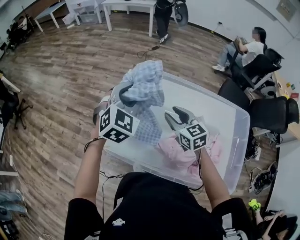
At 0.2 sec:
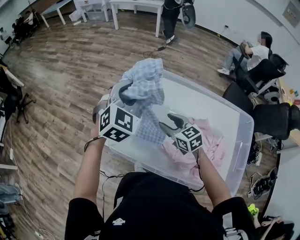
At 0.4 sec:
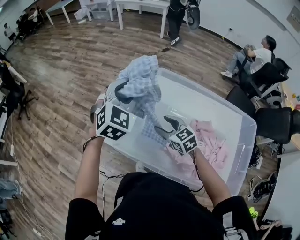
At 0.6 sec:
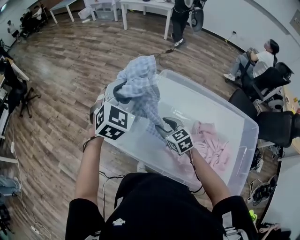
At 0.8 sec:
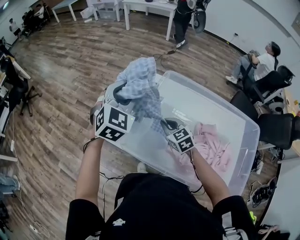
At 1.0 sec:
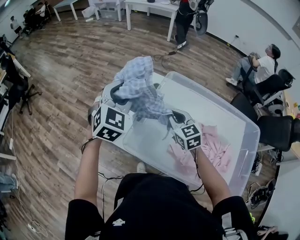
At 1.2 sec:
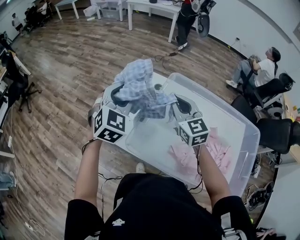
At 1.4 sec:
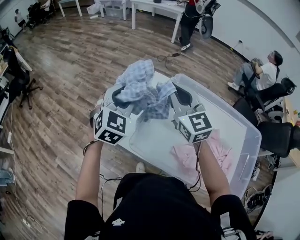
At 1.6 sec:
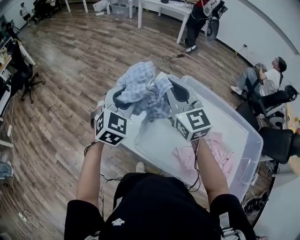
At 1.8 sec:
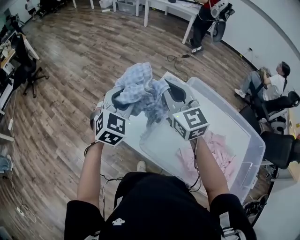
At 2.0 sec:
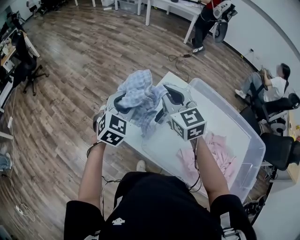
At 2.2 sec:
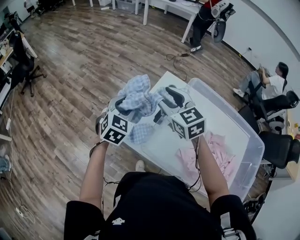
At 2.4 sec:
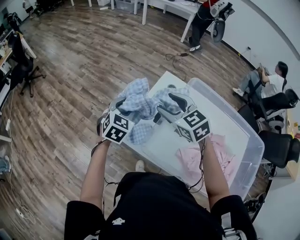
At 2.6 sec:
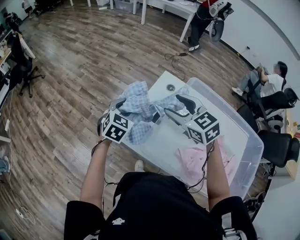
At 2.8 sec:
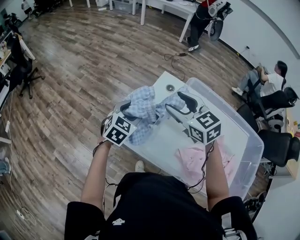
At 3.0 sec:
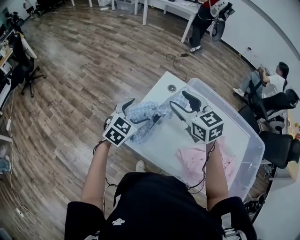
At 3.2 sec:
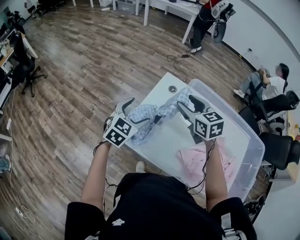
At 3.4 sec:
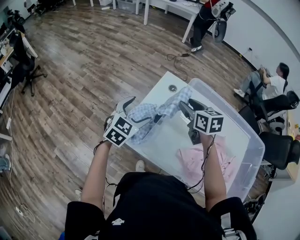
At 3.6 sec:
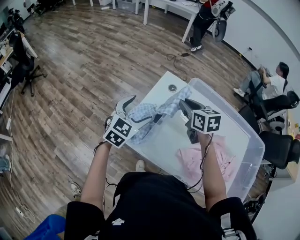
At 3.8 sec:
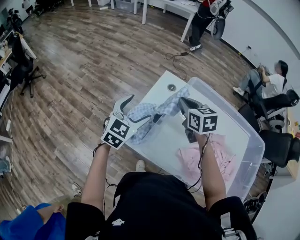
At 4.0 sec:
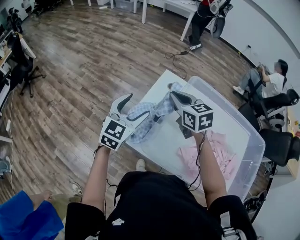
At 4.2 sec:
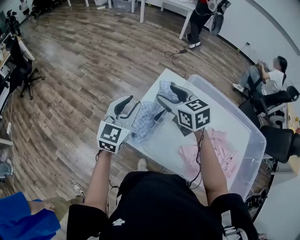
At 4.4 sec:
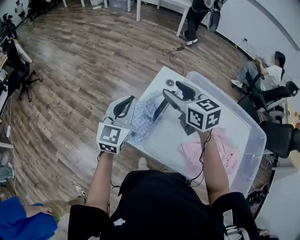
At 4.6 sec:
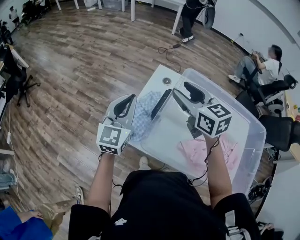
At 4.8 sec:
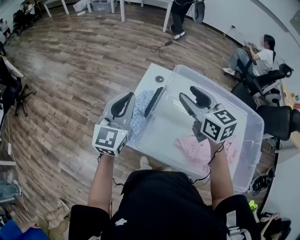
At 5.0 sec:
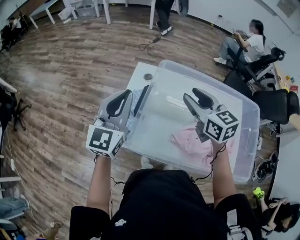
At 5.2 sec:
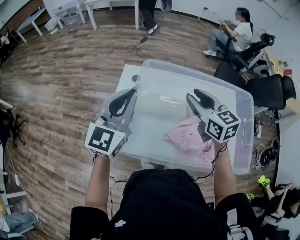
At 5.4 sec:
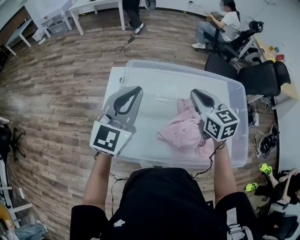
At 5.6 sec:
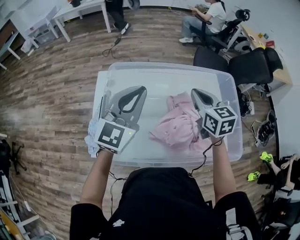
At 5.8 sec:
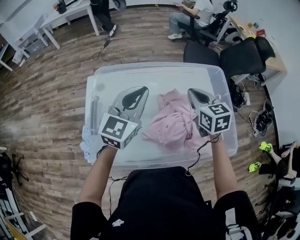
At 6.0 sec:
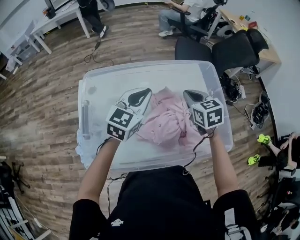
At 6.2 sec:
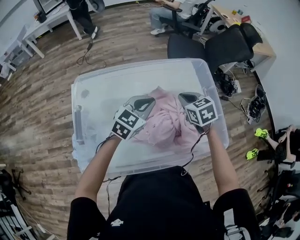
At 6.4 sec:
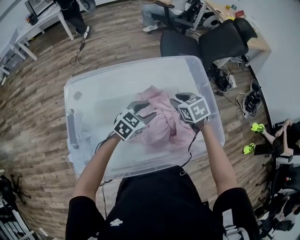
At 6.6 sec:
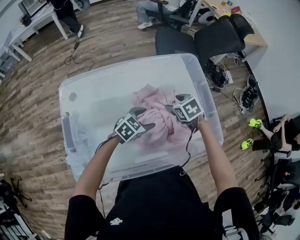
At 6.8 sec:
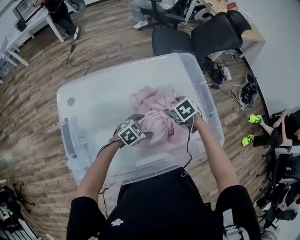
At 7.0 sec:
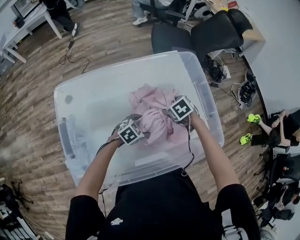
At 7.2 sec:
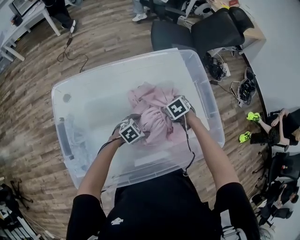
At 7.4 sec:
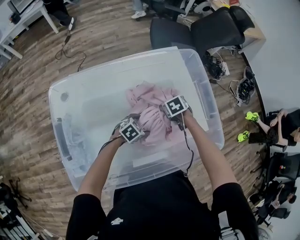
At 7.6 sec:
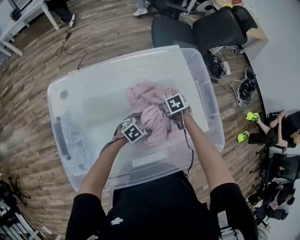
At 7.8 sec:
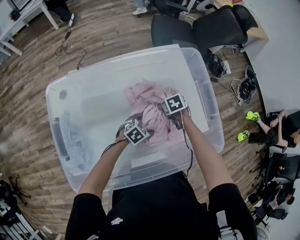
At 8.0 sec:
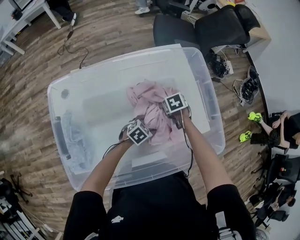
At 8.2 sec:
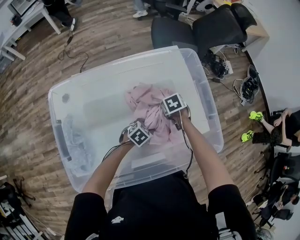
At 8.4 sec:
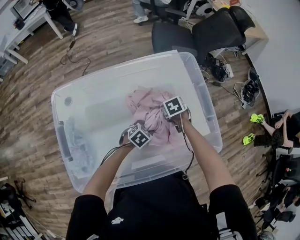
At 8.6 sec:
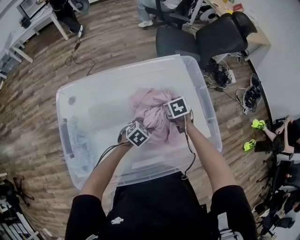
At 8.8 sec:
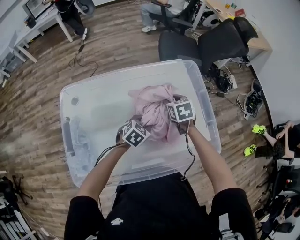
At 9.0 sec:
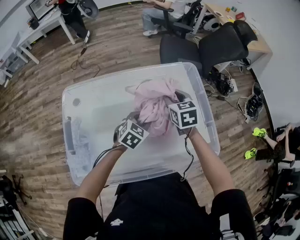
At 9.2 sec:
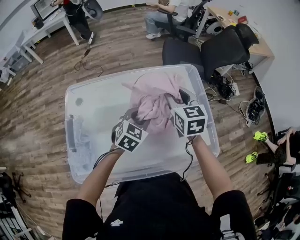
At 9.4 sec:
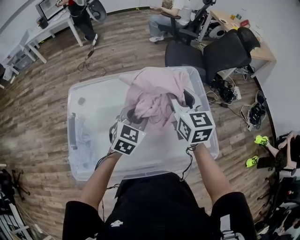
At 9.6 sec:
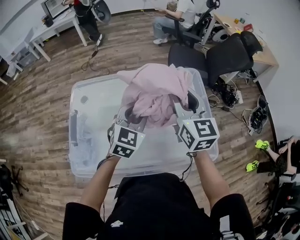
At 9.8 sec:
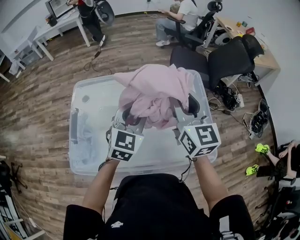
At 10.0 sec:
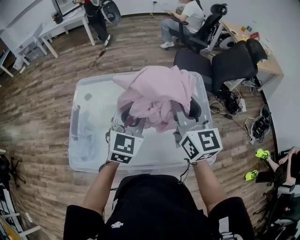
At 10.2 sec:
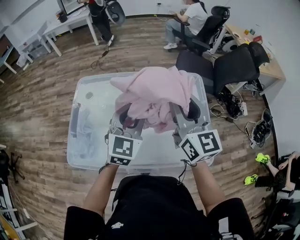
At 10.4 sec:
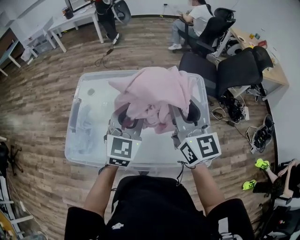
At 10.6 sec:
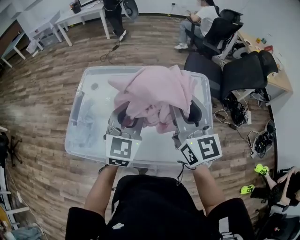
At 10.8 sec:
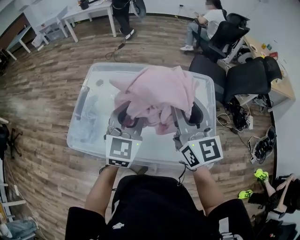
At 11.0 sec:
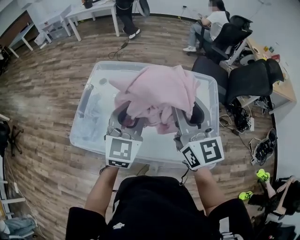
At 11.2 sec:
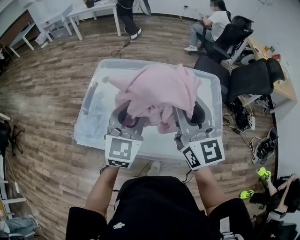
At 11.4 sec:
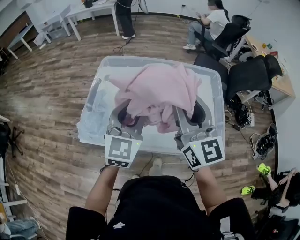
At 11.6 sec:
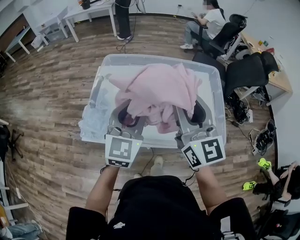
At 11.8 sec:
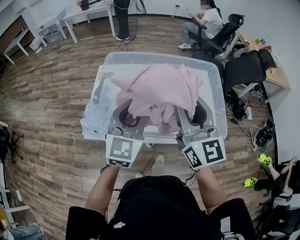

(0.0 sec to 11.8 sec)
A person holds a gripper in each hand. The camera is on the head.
0.0 sec - 1.4 sec: The left gripper moves to the left, roughly 15 cm; the right gripper shifts about 25 cm upward, to the left and forward, turns by some 30 degrees, and closes.
1.4 sec - 3.0 sec: The right gripper goes about 5 cm downward, rotates approximately 20 degrees, and opens. The left gripper moves downward, roughly 15 cm, rotates some 20 degrees, and opens.
3.0 sec - 4.4 sec: The left gripper travels upward by roughly 10 cm, turns by about 30 degrees, and closes its fingers, while the right gripper moves approximately 5 cm to the right and comes back, and closes, then opens again.
4.4 sec - 6.0 sec: Both grippers are carried about 40 cm. The right gripper swivels about 50 degrees, and closes its fingers. The left gripper turns by some 50 degrees.
6.0 sec - 7.4 sec: The grippers both shift downward by about 30 cm. The right gripper angles its fingers downward, by some 40 degrees, and opens, while the left gripper angles its fingers downward, by about 40 degrees, and opens up.
7.4 sec - 8.8 sec: Both grippers travel together upward, some 10 cm. The right gripper turns by approximately 20 degrees, and closes up, while the left gripper closes its fingers.
8.8 sec - 10.4 sec: The two grippers go approximately 30 cm upward. The left gripper tips its fingers upward by some 40 degrees. Meanwhile the right gripper tilts its fingers some 60 degrees upward.
10.4 sec - 11.8 sec: Both grippers move backward and to the left, some 15 cm.

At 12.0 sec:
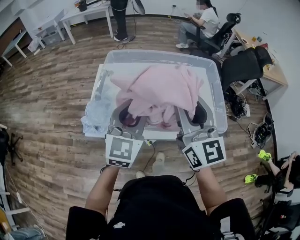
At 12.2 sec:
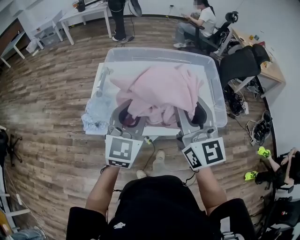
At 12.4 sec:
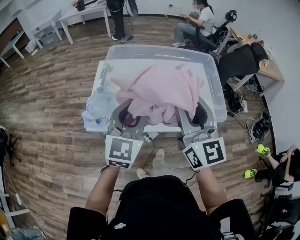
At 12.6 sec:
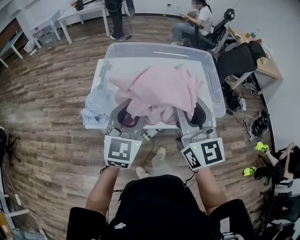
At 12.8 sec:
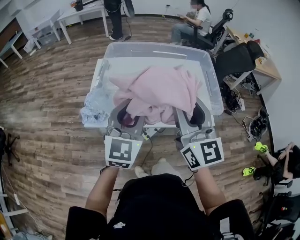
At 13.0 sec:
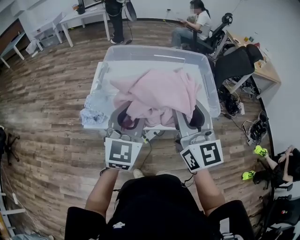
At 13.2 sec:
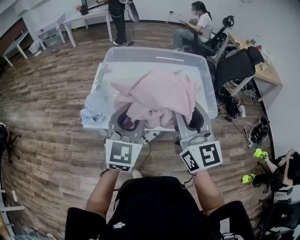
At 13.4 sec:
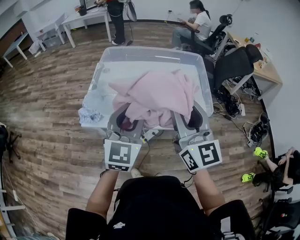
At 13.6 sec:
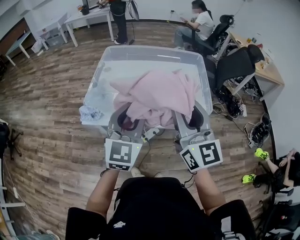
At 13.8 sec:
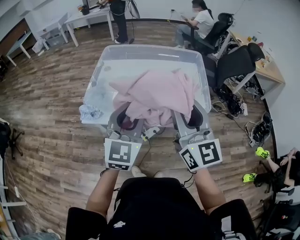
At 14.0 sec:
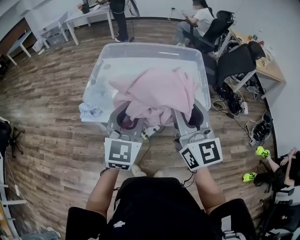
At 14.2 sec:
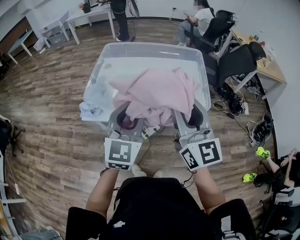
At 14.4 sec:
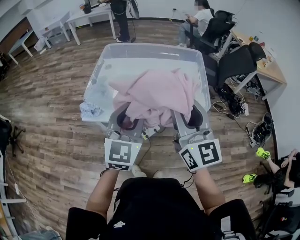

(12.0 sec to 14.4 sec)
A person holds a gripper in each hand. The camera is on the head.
12.0 sec - 13.2 sec: Both grippers travel together backward, about 10 cm.
13.2 sec - 14.4 sec: The left gripper changes place by some 5 cm, while the right gripper goes some 5 cm to the right.

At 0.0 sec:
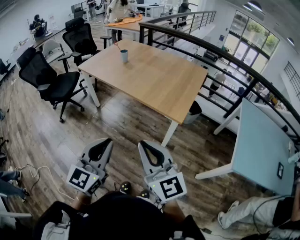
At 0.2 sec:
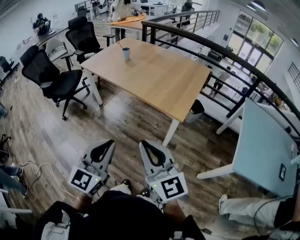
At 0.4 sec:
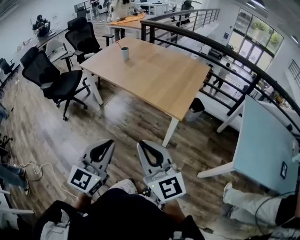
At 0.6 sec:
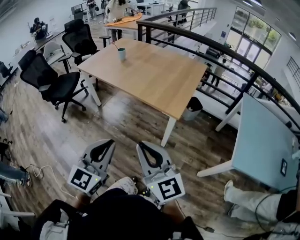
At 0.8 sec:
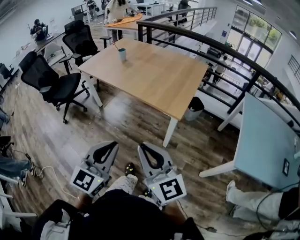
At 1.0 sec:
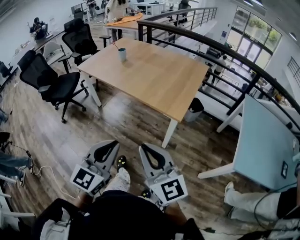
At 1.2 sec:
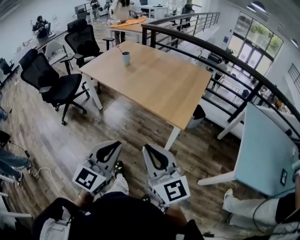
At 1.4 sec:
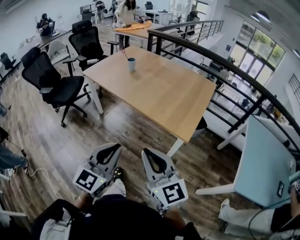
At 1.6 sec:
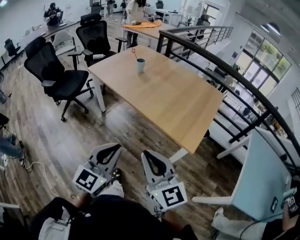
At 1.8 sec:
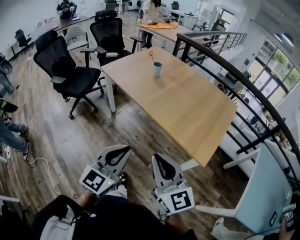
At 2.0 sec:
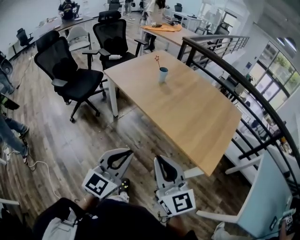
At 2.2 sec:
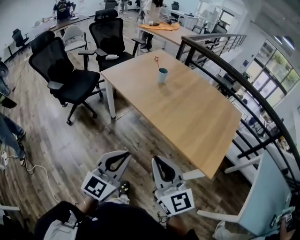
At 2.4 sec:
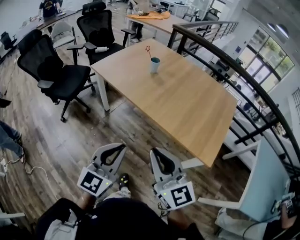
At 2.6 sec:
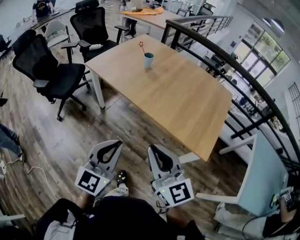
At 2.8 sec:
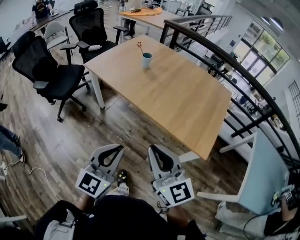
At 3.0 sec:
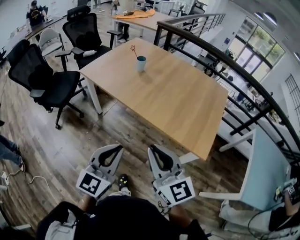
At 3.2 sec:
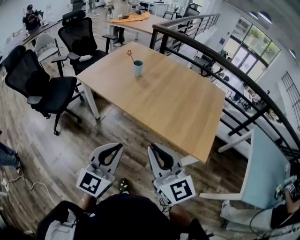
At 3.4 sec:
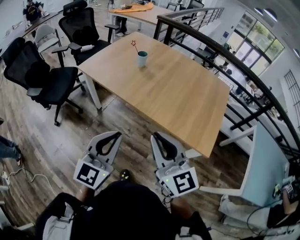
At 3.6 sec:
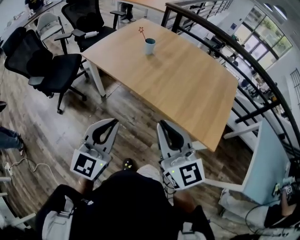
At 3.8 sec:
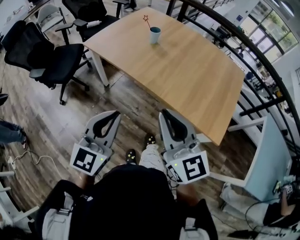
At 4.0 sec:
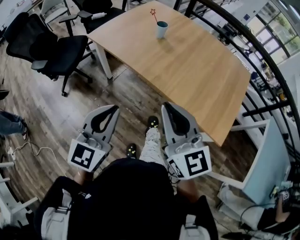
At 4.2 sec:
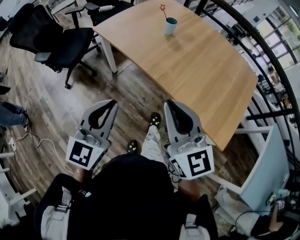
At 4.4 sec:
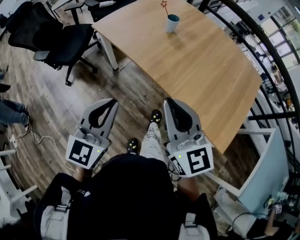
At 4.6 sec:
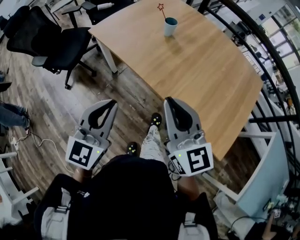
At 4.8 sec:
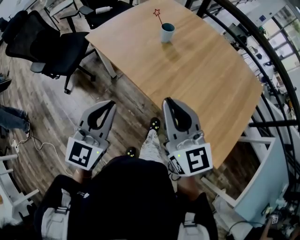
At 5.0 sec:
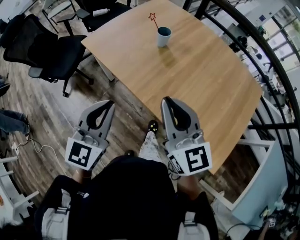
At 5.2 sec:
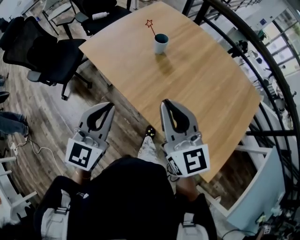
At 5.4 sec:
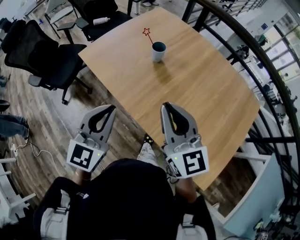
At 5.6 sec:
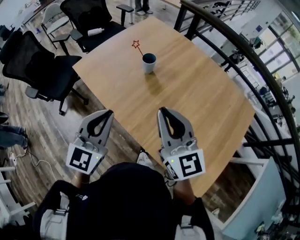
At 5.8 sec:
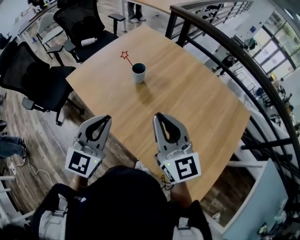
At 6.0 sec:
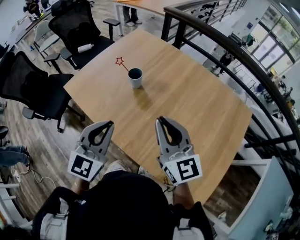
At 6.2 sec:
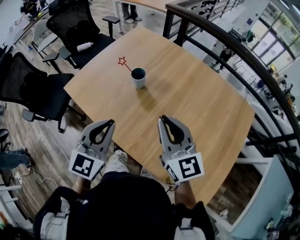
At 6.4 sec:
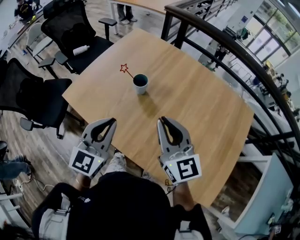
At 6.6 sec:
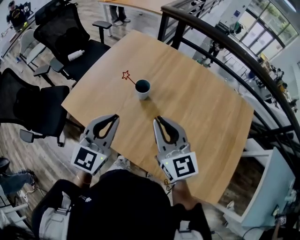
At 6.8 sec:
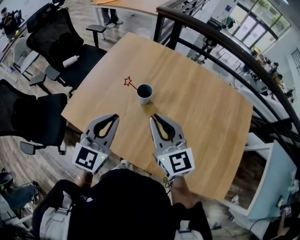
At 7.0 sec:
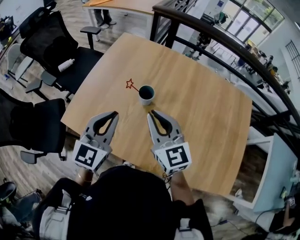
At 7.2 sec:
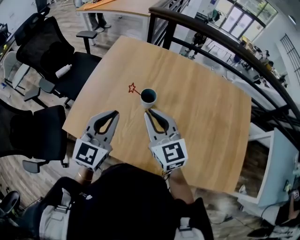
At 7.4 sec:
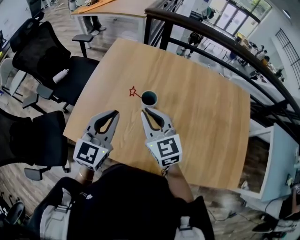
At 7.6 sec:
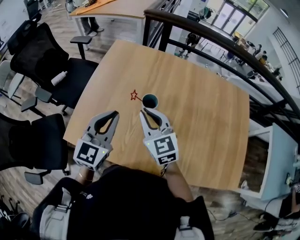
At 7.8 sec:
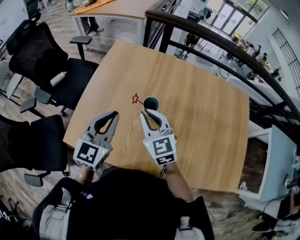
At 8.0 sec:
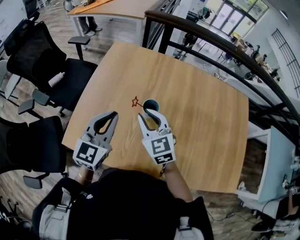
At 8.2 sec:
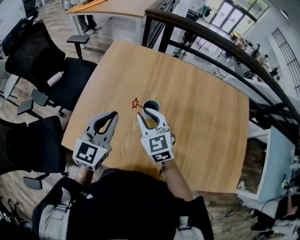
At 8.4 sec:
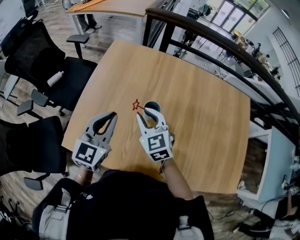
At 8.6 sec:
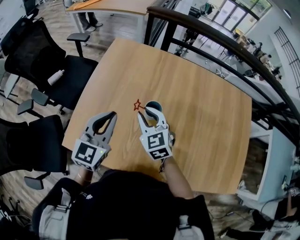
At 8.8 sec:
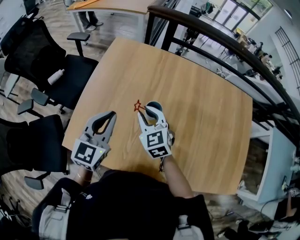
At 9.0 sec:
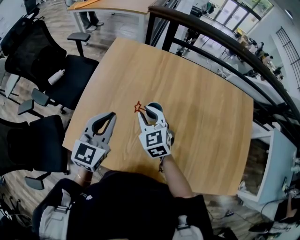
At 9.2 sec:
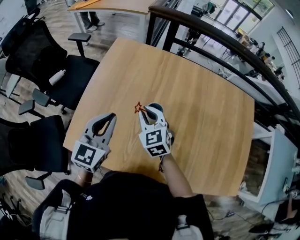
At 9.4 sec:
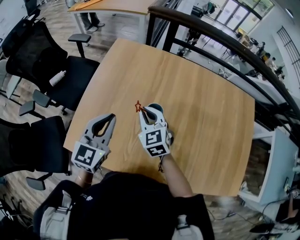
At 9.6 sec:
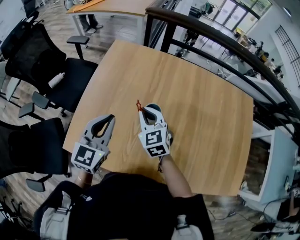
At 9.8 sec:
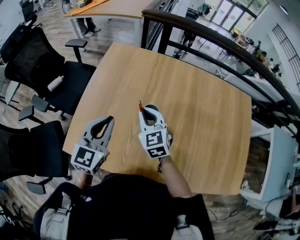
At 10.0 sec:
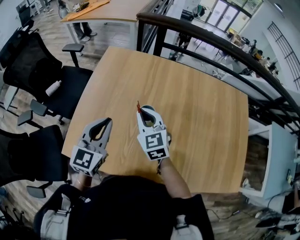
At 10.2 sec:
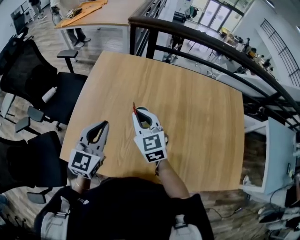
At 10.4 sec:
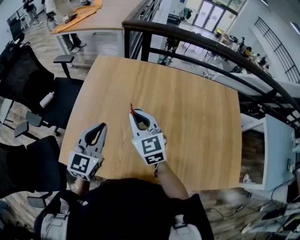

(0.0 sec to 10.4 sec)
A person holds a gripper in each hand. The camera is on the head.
0.0 sec - 1.4 sec: The grippers both shift forward by approximately 10 cm.
1.4 sec - 3.0 sec: The grippers both shift forward and to the left by about 25 cm.
3.0 sec - 4.4 sec: The right gripper heads forward, covering some 20 cm. The left gripper moves forward and to the left, some 20 cm.
4.4 sec - 6.0 sec: Both grippers travel together forward and to the right, approximately 35 cm.
6.0 sec - 7.4 sec: The left gripper is displaced forward and to the left by some 30 cm, and swivels some 20 degrees. Meanwhile the right gripper goes some 35 cm to the left and forward, and turns by some 20 degrees.
7.4 sec - 9.0 sec: The left gripper moves forward, about 5 cm; the right gripper goes some 15 cm forward and downward.
9.0 sec - 10.4 sec: The right gripper is displaced upward by approximately 10 cm.
